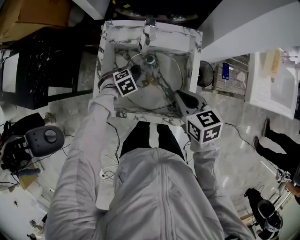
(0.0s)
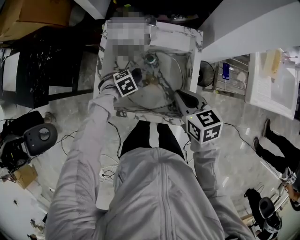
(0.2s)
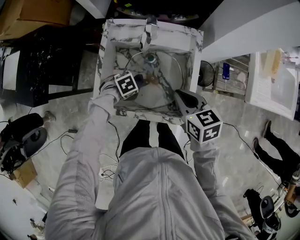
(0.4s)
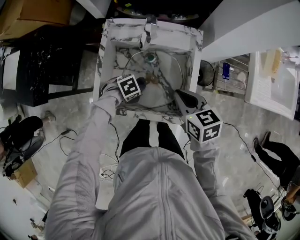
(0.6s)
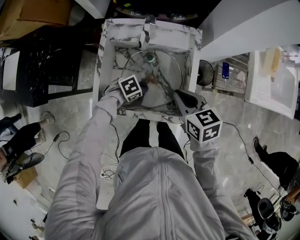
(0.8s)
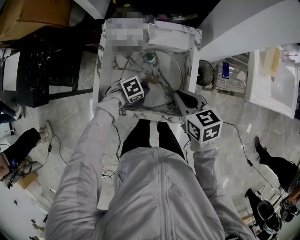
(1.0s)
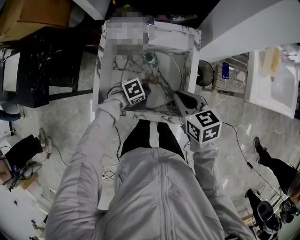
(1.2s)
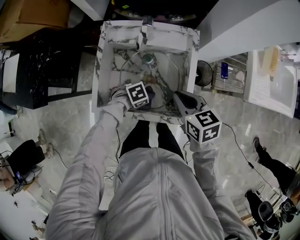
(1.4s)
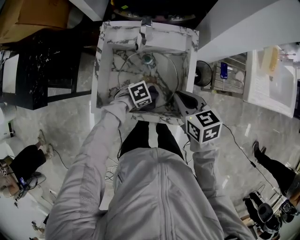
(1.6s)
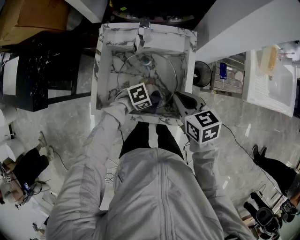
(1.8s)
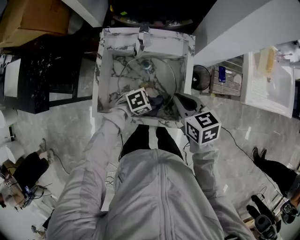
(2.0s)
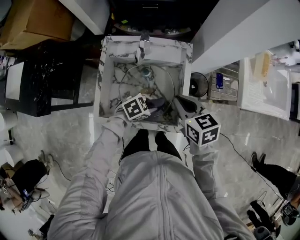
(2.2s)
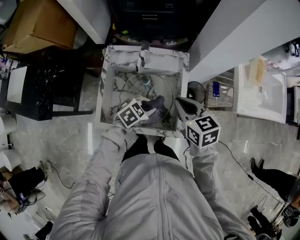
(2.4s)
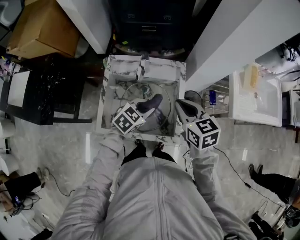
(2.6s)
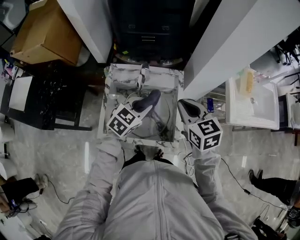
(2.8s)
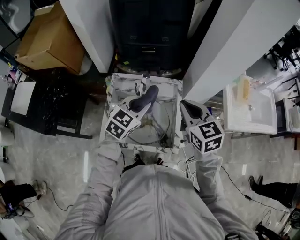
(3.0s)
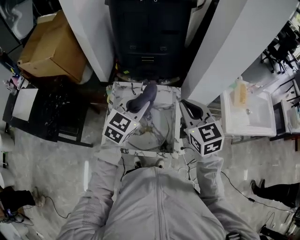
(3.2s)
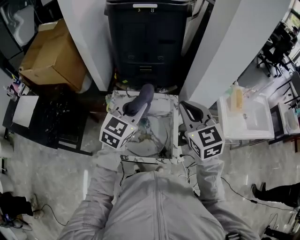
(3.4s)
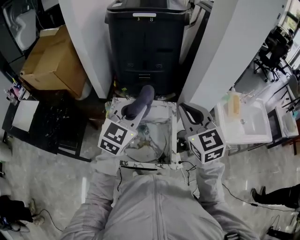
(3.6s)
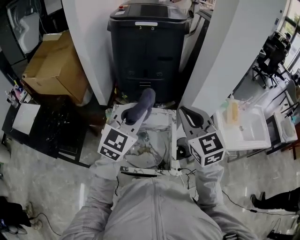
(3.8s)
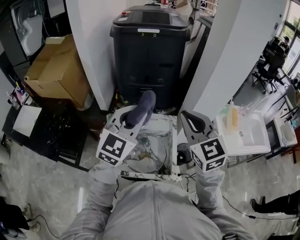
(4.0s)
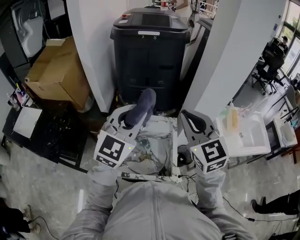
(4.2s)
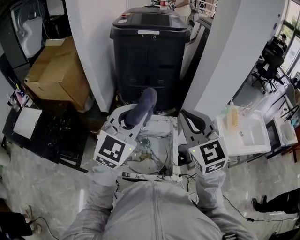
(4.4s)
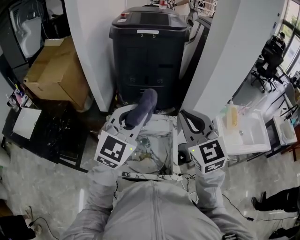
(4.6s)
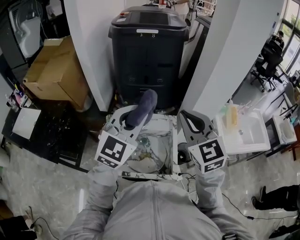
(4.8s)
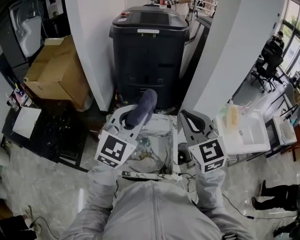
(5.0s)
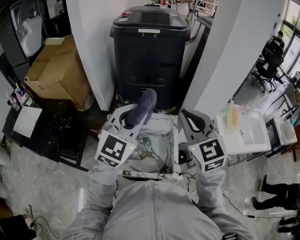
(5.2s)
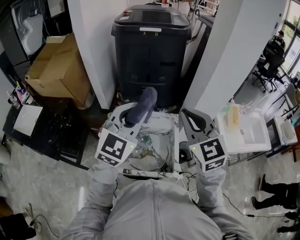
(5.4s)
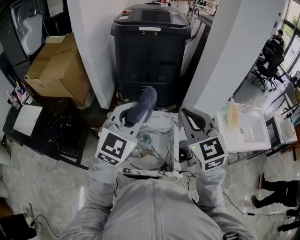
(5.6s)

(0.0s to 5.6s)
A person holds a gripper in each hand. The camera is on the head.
0.0s - 1.4s: The left gripper ends up approximately 15 cm from where it was, and rotates some 30 degrees.
1.4s - 2.8s: The right gripper goes roughly 15 cm upward, and changes its angle by approximately 20 degrees. The left gripper moves upward, about 25 cm, and changes its angle by approximately 50 degrees.
2.8s - 4.2s: Both grippers move upward, about 25 cm. The left gripper points its fingers some 30 degrees further upward. The right gripper changes its angle by about 30 degrees.
4.2s - 5.6s: The grippers move only a little.

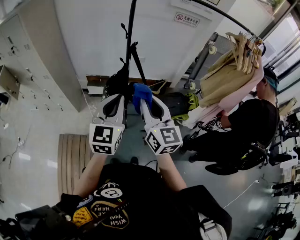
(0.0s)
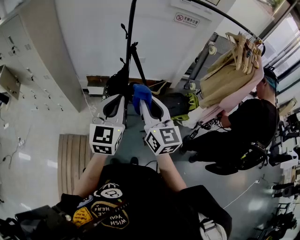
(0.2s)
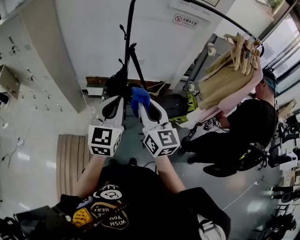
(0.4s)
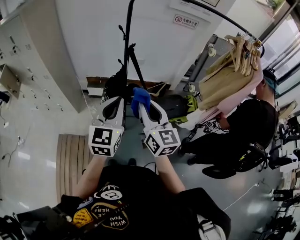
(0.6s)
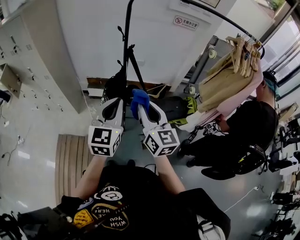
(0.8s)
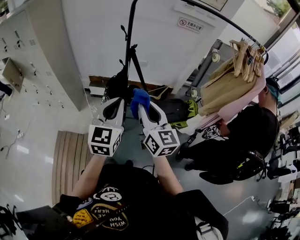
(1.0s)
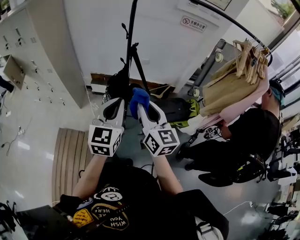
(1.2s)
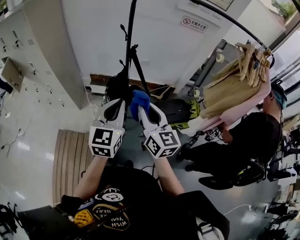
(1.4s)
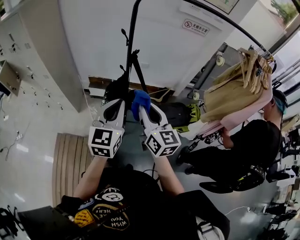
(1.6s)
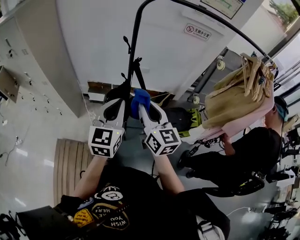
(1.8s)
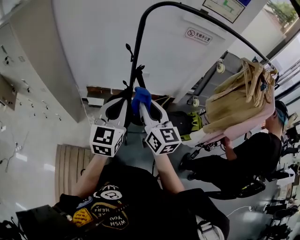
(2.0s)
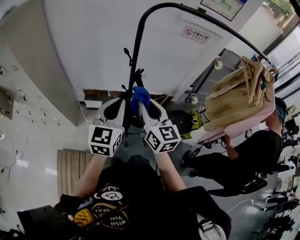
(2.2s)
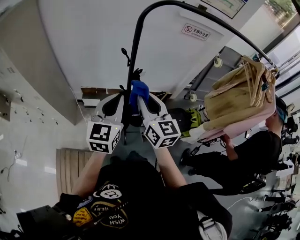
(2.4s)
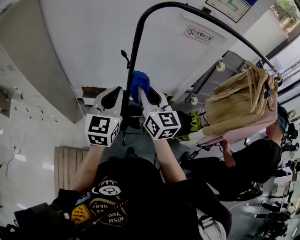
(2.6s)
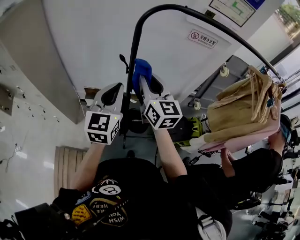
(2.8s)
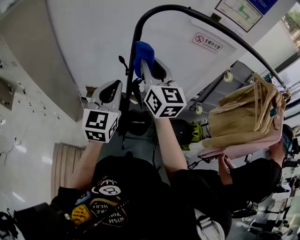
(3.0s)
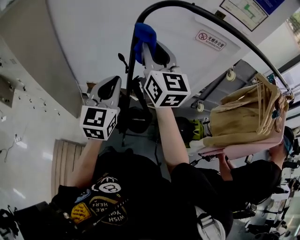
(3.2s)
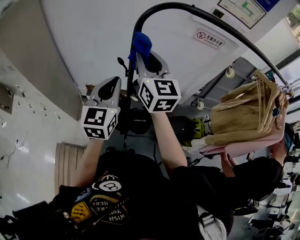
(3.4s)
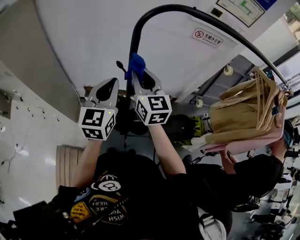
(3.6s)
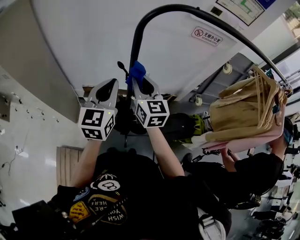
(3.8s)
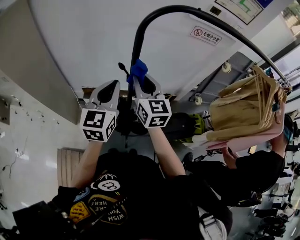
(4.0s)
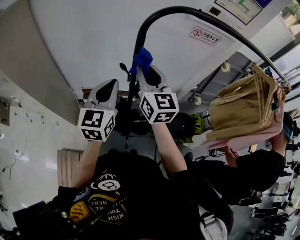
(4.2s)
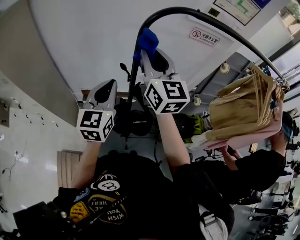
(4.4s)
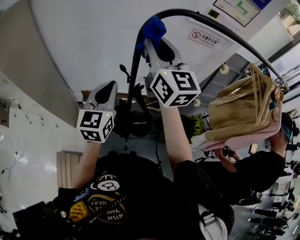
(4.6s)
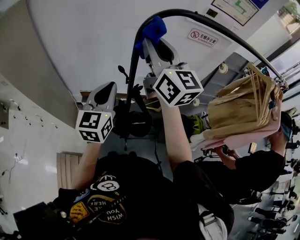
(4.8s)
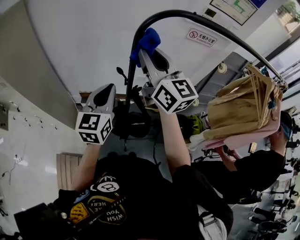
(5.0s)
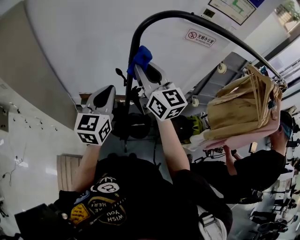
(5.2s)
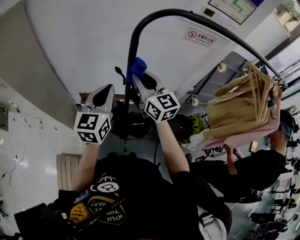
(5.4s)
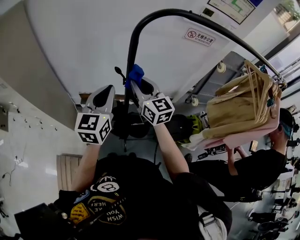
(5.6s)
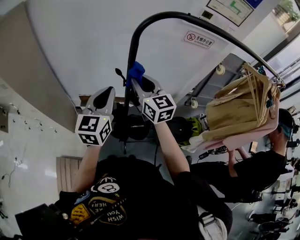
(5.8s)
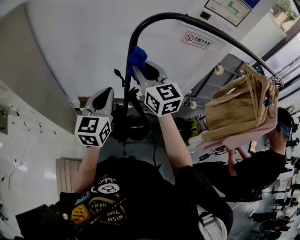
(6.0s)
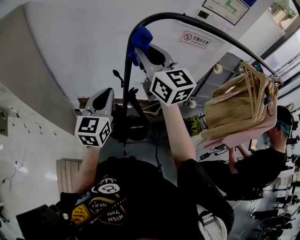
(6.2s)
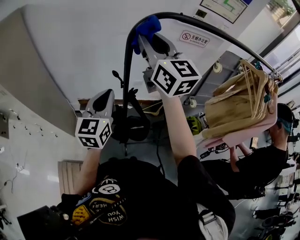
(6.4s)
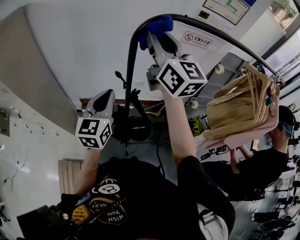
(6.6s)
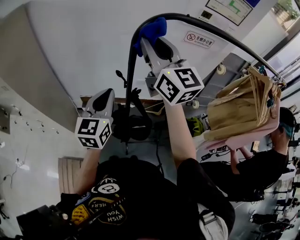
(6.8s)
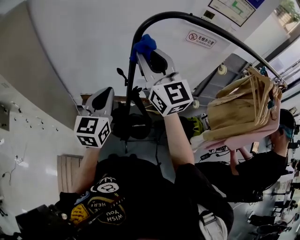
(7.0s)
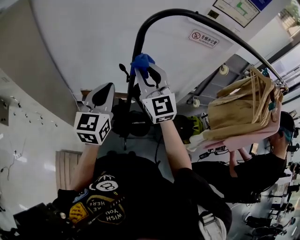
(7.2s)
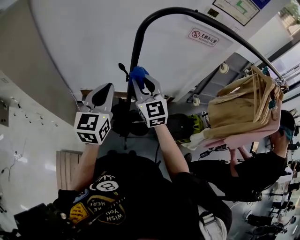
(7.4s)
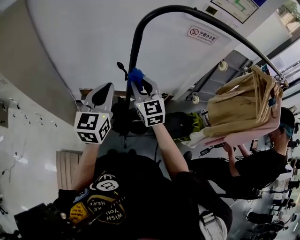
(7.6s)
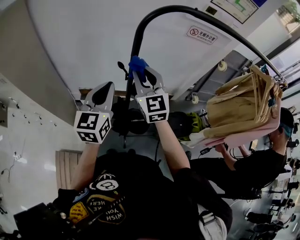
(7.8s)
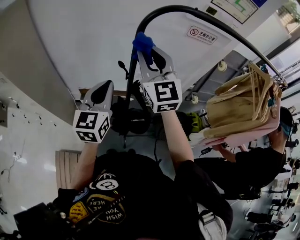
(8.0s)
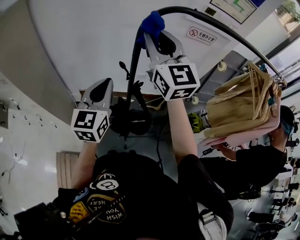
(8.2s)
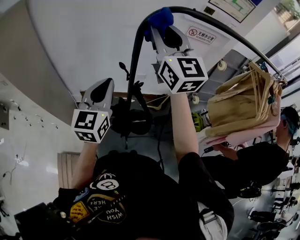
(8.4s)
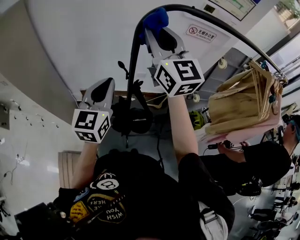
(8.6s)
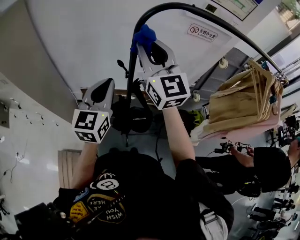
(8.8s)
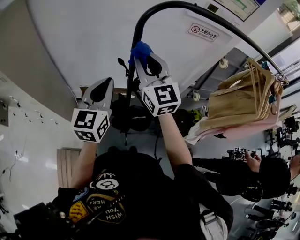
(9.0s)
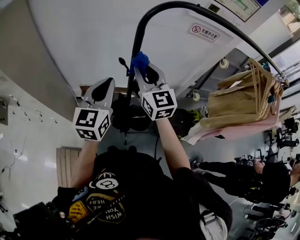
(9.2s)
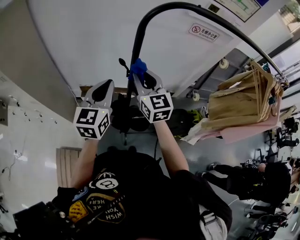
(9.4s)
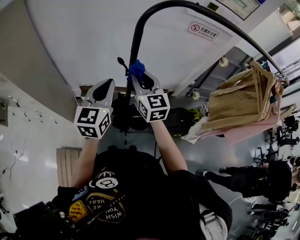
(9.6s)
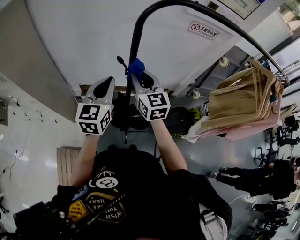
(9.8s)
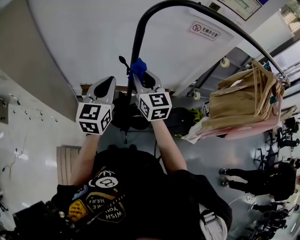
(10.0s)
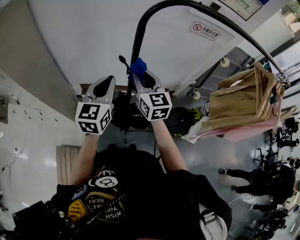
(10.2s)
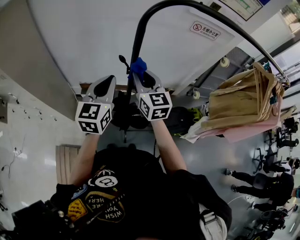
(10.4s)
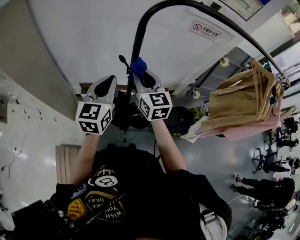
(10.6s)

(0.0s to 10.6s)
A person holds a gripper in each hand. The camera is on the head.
0.0s - 1.6s: Both grippers move forward, approximately 10 cm.
1.6s - 3.0s: The grippers both shift forward by approximately 30 cm.
3.0s - 4.6s: The right gripper swings up and down, approximately 20 cm each way, with 2 reversals. The left gripper travels forward by roughly 5 cm.
4.6s - 6.0s: The right gripper travels downward by approximately 10 cm.
6.0s - 7.6s: The right gripper goes approximately 15 cm downward.
7.6s - 9.0s: The right gripper is displaced upward by approximately 15 cm.
9.0s - 10.6s: The right gripper travels downward by roughly 10 cm.

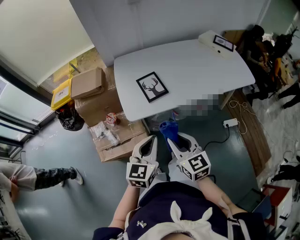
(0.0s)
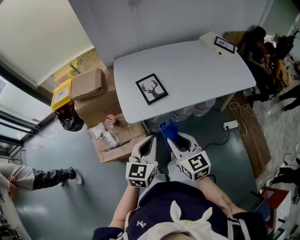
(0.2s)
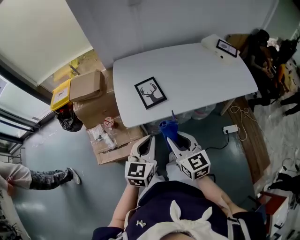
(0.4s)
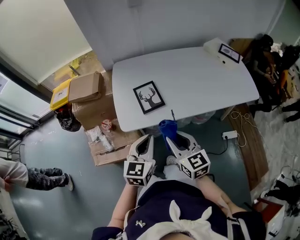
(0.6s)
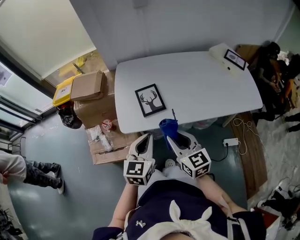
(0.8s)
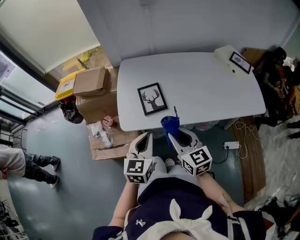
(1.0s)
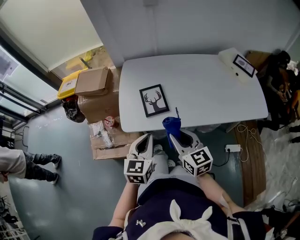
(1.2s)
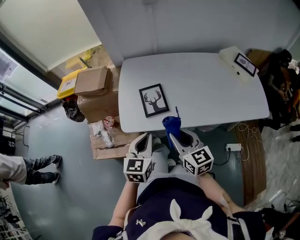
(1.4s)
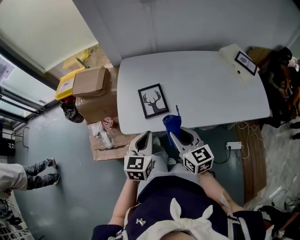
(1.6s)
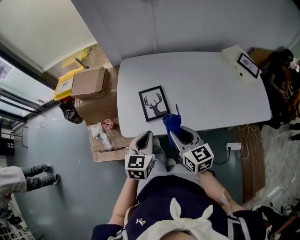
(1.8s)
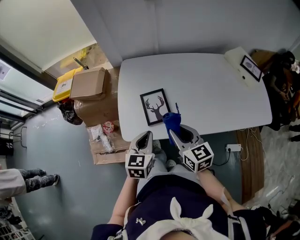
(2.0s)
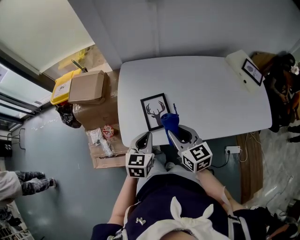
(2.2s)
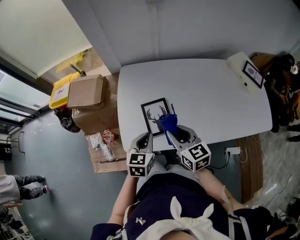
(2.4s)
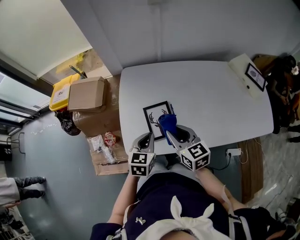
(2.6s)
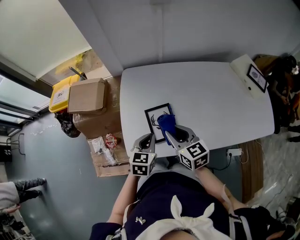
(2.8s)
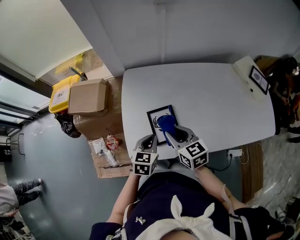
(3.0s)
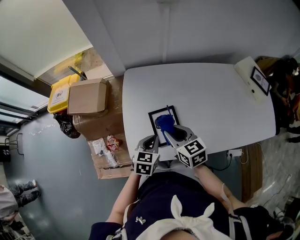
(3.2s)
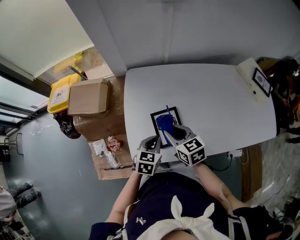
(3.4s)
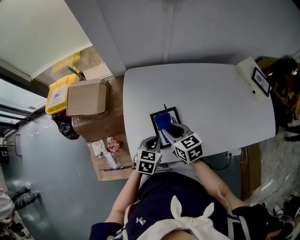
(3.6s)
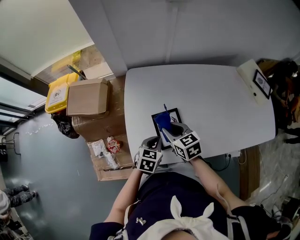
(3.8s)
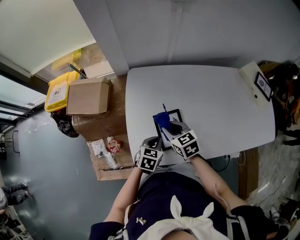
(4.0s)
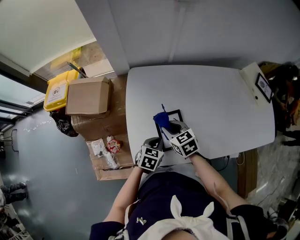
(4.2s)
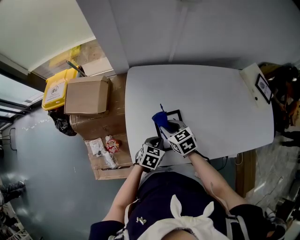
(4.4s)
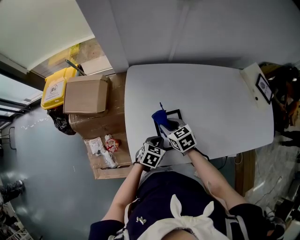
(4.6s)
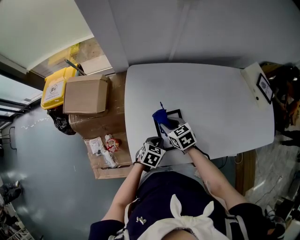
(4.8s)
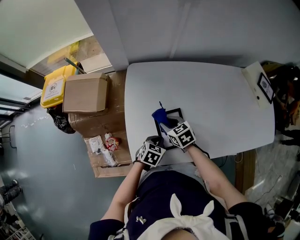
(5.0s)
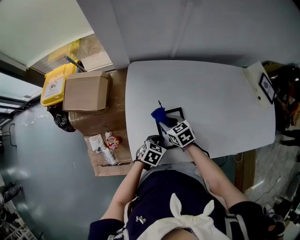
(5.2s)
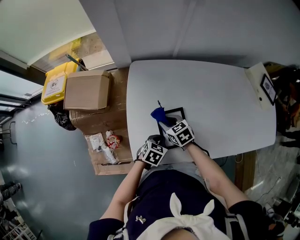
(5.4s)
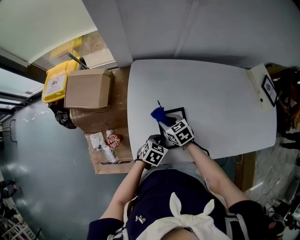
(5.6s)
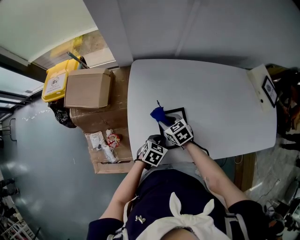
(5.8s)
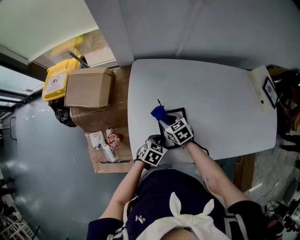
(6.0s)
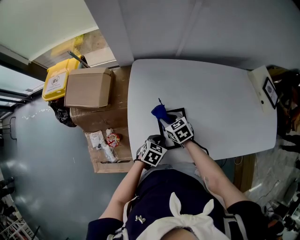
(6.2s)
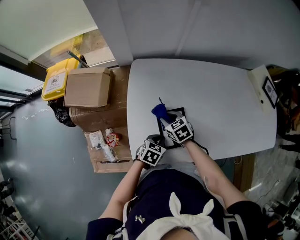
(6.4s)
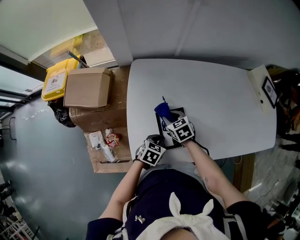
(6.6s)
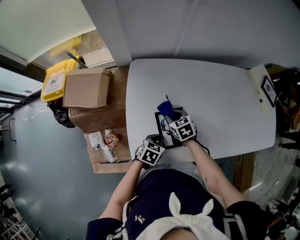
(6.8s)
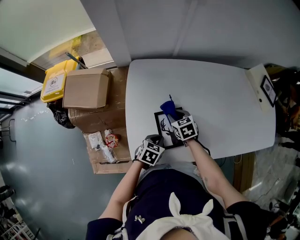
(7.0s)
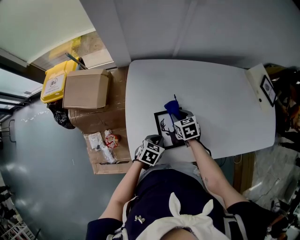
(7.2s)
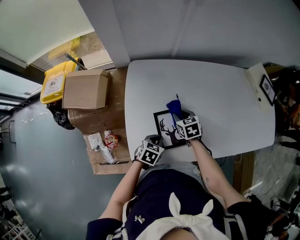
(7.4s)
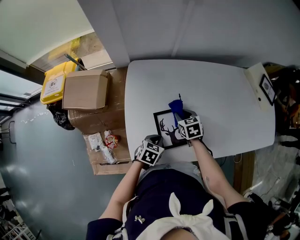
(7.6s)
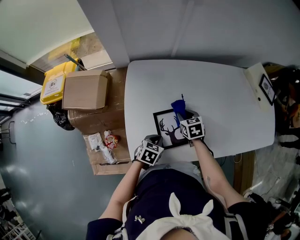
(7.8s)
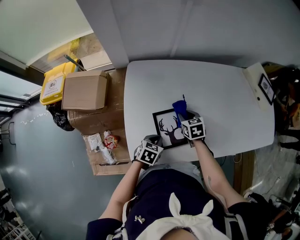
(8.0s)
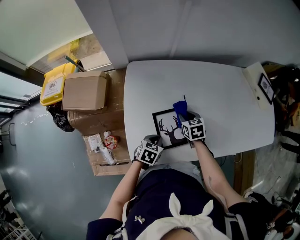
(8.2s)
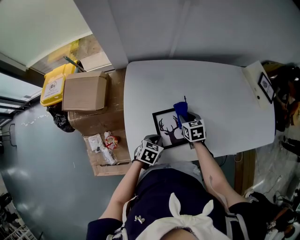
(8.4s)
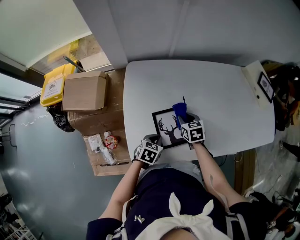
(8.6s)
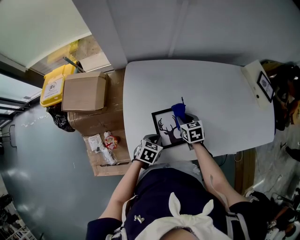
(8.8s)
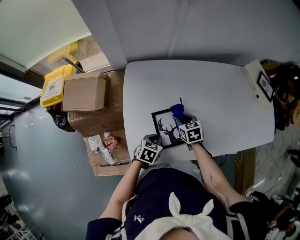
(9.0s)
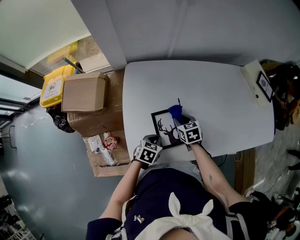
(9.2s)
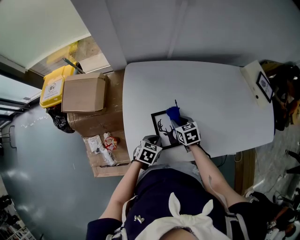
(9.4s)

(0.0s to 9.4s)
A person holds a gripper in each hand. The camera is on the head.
0.0s - 1.6s: The grippers both shift forward and to the right by some 20 cm.
1.6s - 3.2s: The right gripper shifts some 20 cm forward. Meanwhile the left gripper shifts approximately 20 cm forward and downward.
3.2s - 4.8s: The right gripper goes some 15 cm downward and forward. The left gripper moves downward, some 10 cm.
4.8s - 6.2s: The grippers stay close to where they were, moving slightly.
6.2s - 7.8s: The right gripper heads to the right, covering some 10 cm, and rotates some 20 degrees.
7.8s - 9.4s: The grippers move only a little.
